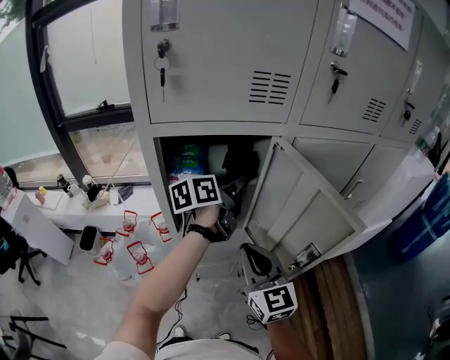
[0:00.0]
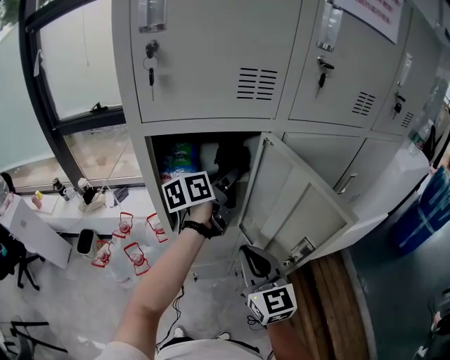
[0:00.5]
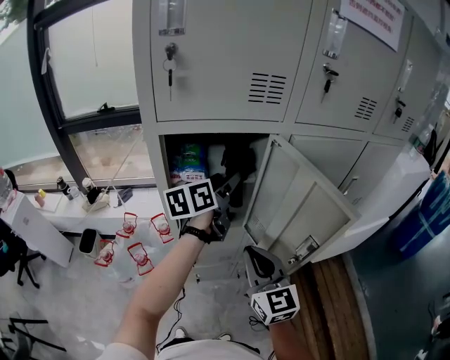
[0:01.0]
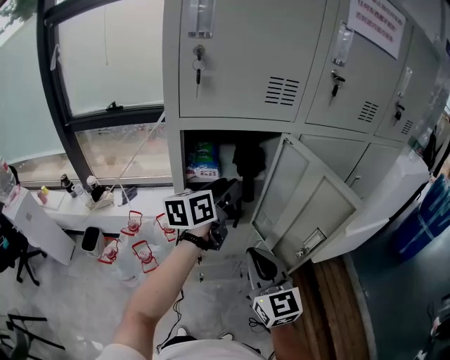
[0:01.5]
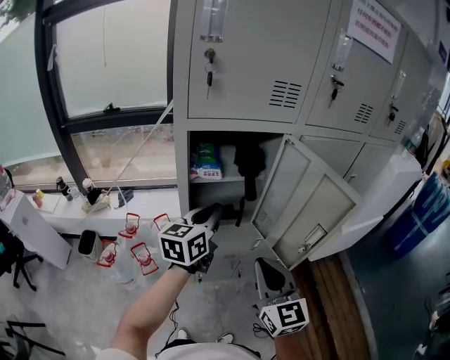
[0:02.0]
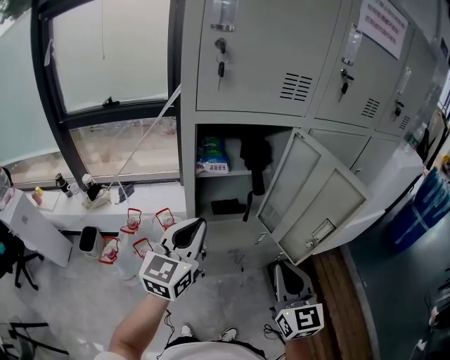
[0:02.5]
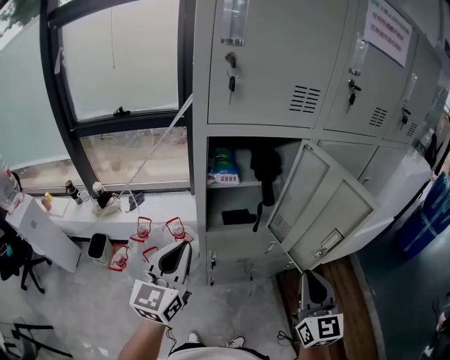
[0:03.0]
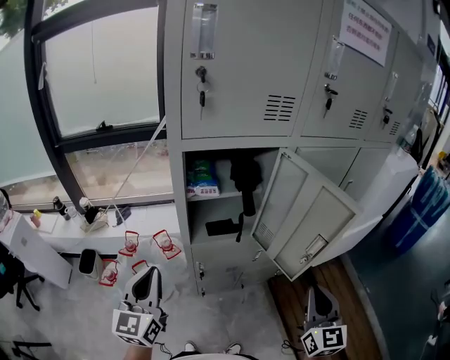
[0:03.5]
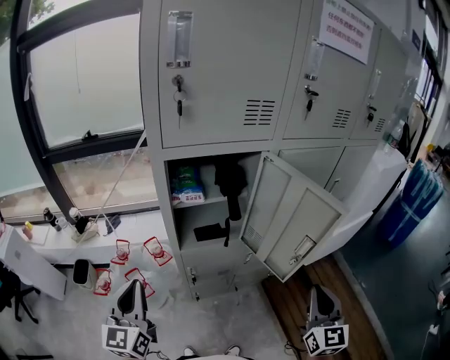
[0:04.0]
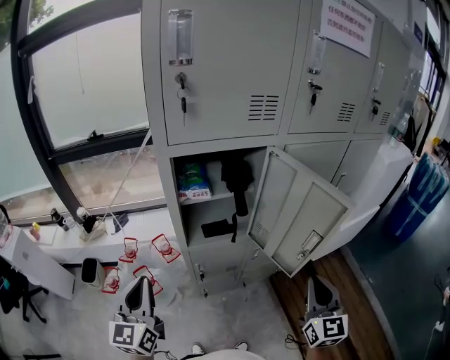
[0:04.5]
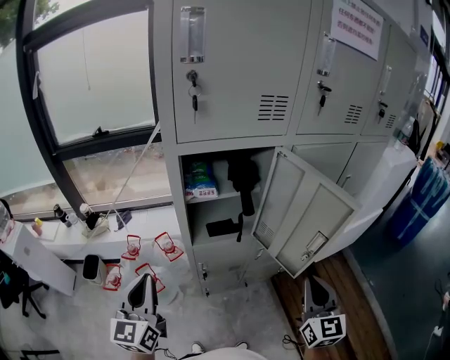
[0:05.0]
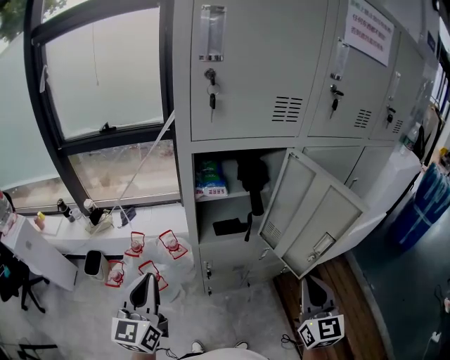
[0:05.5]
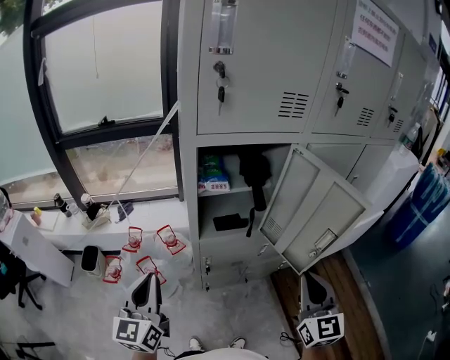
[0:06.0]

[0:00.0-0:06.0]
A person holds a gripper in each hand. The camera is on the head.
0:00.0 to 0:02.0: The left gripper shifts approximately 15 cm backward and to the left, changes its angle by about 30 degrees, and closes its fingers. Meanwhile the right gripper travels backward by about 10 cm.
0:02.0 to 0:04.0: The left gripper heads backward and to the left, covering roughly 25 cm, and swivels about 30 degrees, while the right gripper is displaced to the right by about 15 cm, and turns by about 30 degrees.
0:04.0 to 0:06.0: The right gripper moves to the left, about 10 cm.

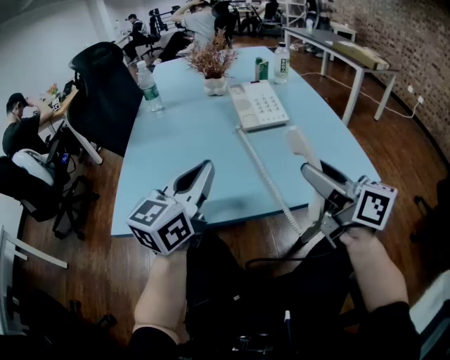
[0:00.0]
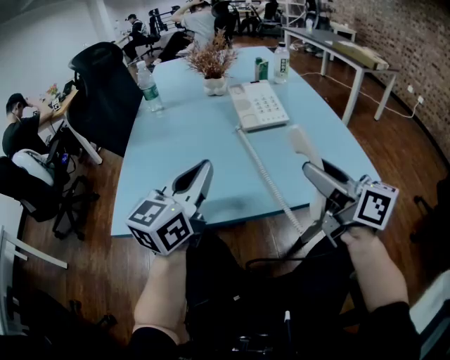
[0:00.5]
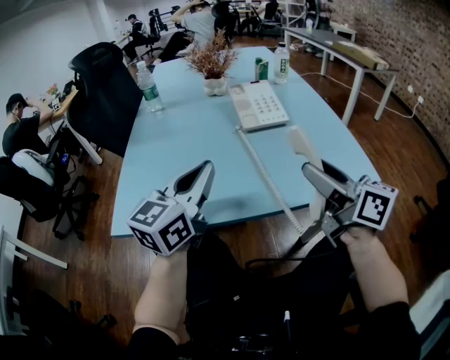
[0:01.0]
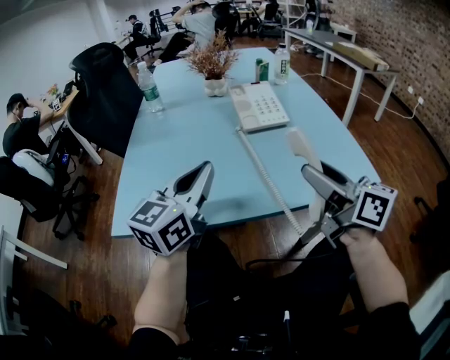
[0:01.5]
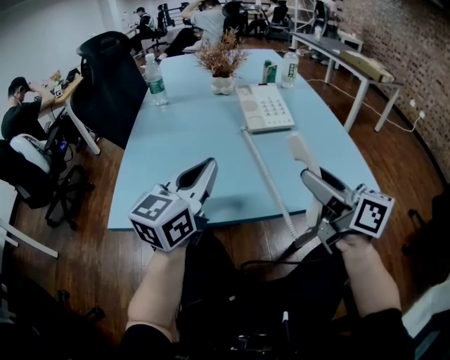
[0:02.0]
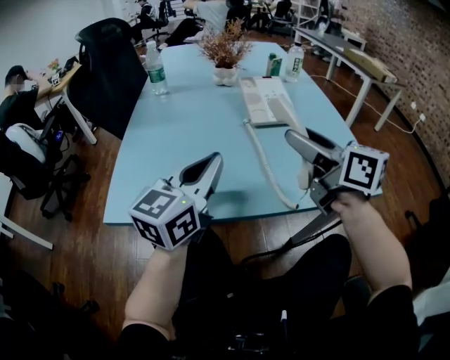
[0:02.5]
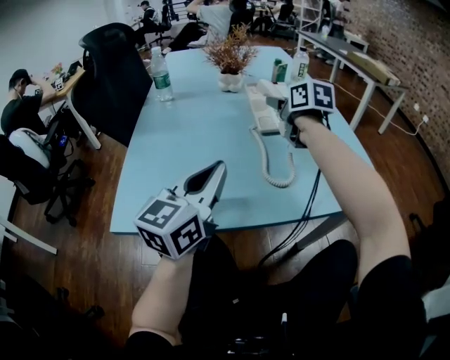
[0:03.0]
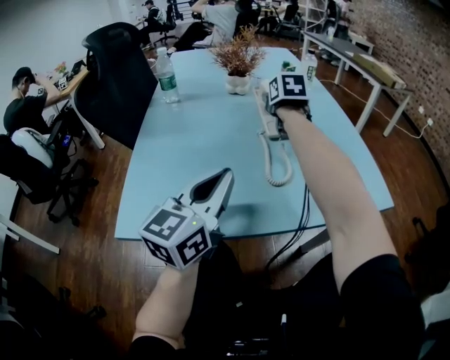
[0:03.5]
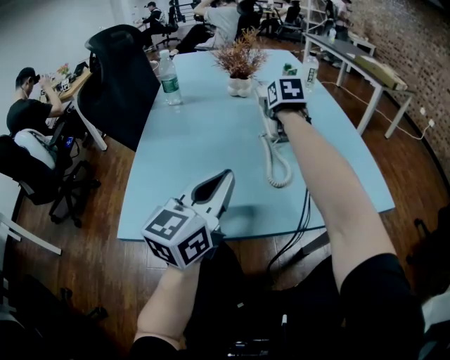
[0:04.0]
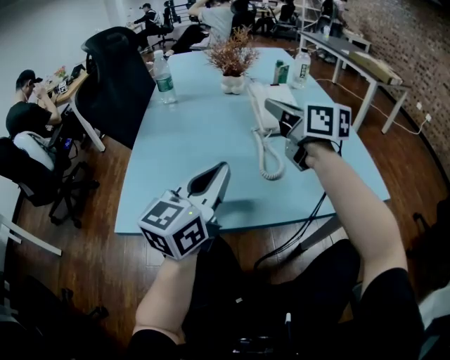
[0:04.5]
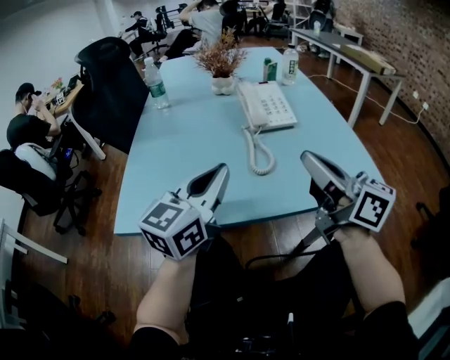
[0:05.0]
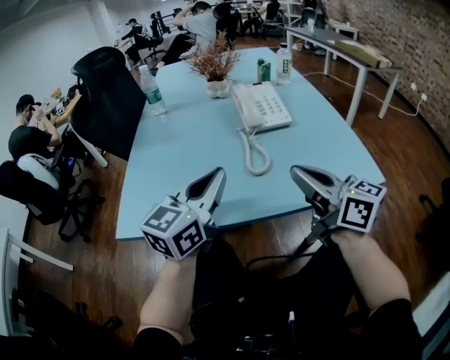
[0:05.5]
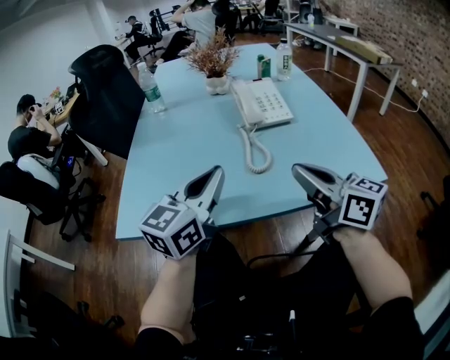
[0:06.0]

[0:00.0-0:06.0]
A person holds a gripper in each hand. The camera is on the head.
0:00.0 to 0:02.0: The two grippers keep their place.
0:02.0 to 0:04.0: The right gripper goes some 35 cm forward, and tilts its fingers about 30 degrees downward.
0:04.0 to 0:06.0: The right gripper is displaced backward by approximately 35 cm, angles its fingers upward, by about 30 degrees, and closes its fingers.

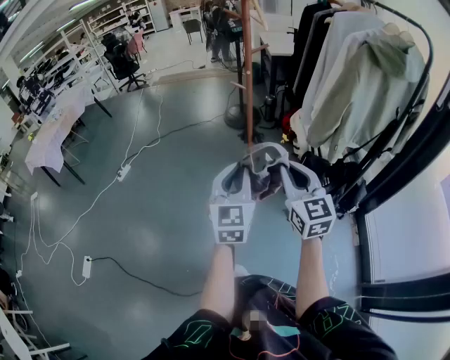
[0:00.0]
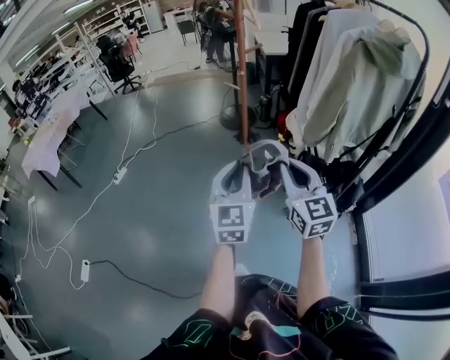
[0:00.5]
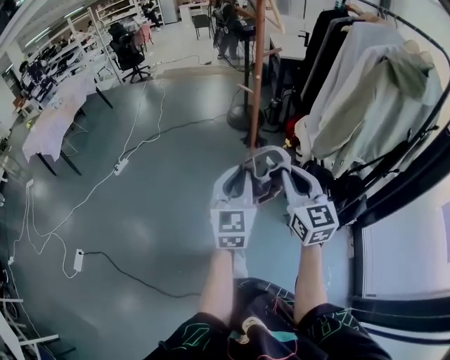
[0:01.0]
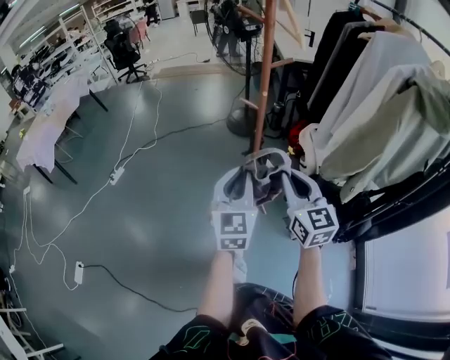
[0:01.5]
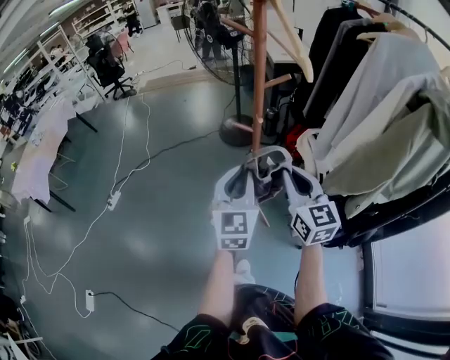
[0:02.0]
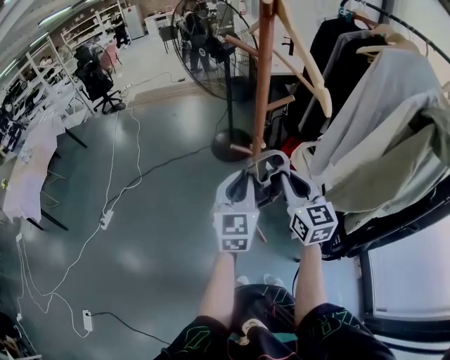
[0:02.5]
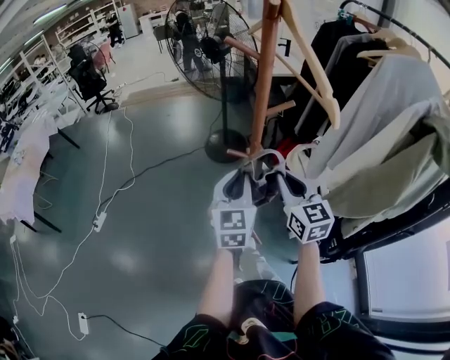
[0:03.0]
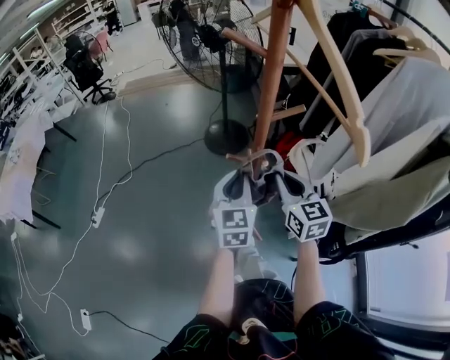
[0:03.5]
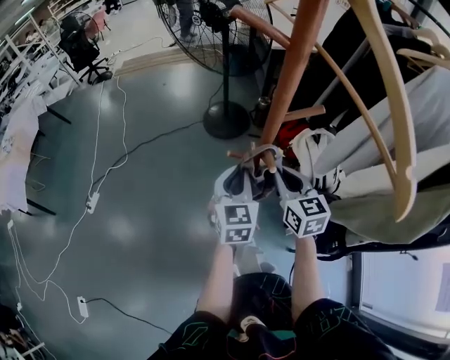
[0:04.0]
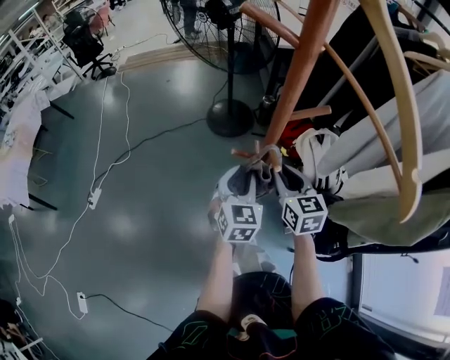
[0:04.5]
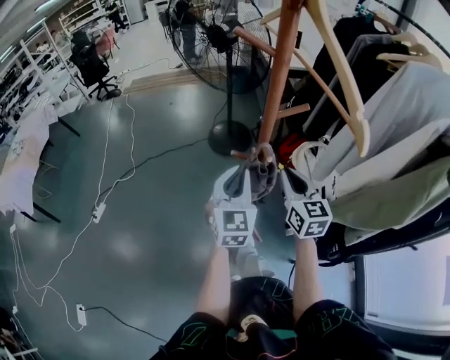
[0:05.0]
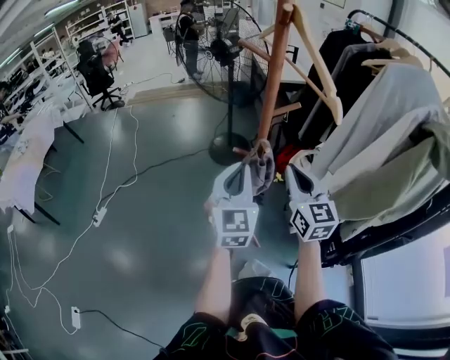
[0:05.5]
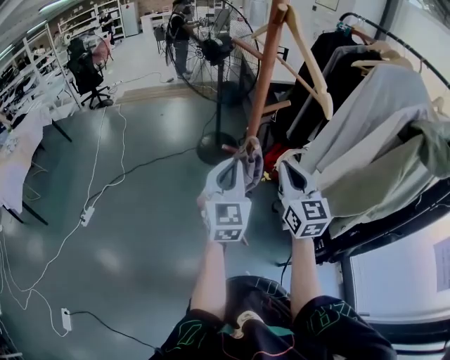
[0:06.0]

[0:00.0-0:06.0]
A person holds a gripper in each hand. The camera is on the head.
0:00.0 to 0:02.0: Both grippers move forward, approximately 30 cm.
0:02.0 to 0:04.0: The two grippers go some 20 cm forward and downward.
0:04.0 to 0:06.0: Both grippers move upward and backward, roughly 15 cm. The right gripper changes its angle by some 20 degrees; the left gripper changes its angle by some 20 degrees.

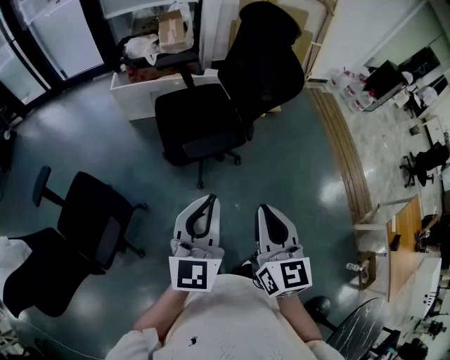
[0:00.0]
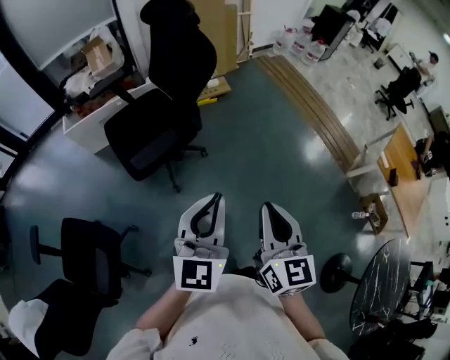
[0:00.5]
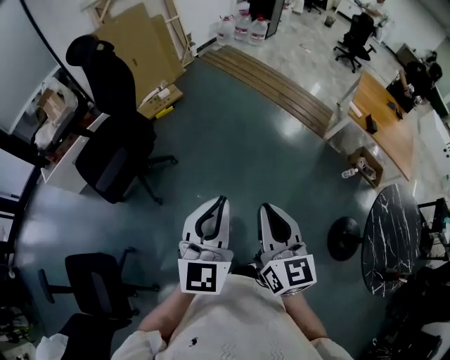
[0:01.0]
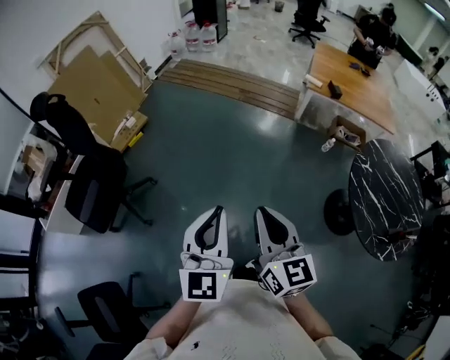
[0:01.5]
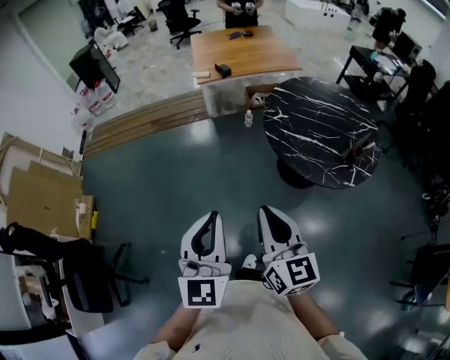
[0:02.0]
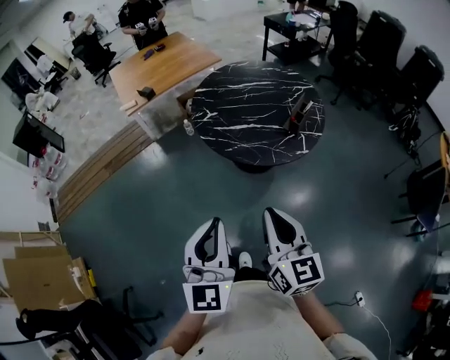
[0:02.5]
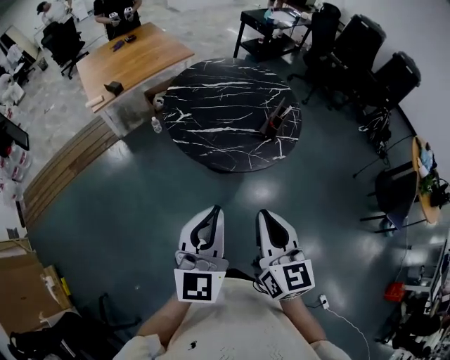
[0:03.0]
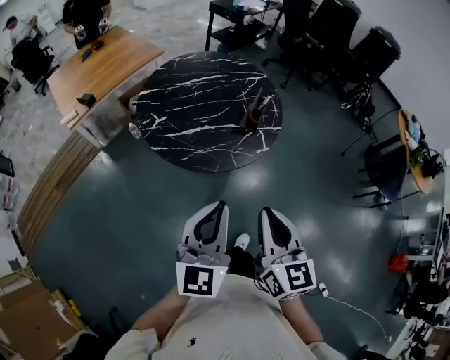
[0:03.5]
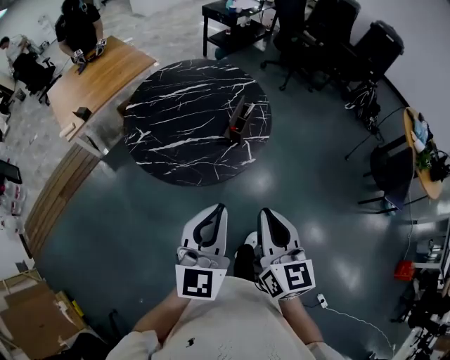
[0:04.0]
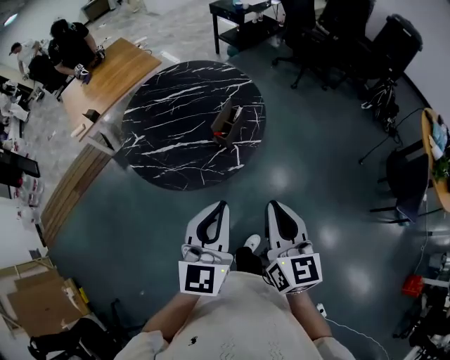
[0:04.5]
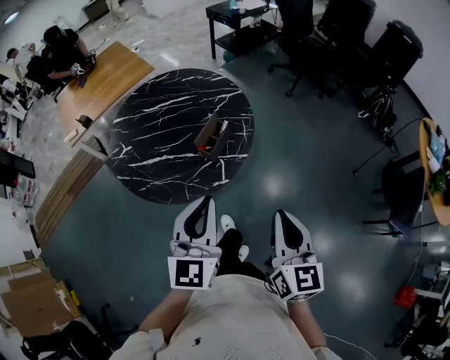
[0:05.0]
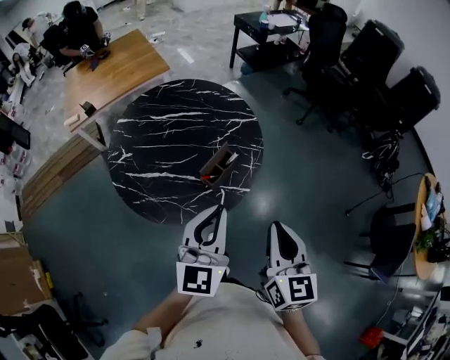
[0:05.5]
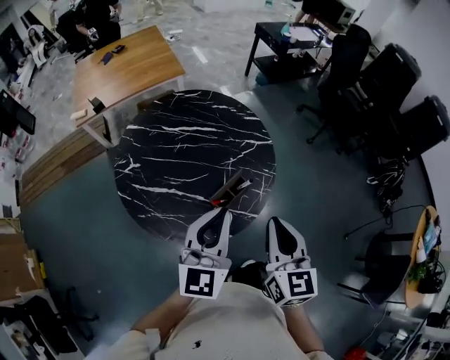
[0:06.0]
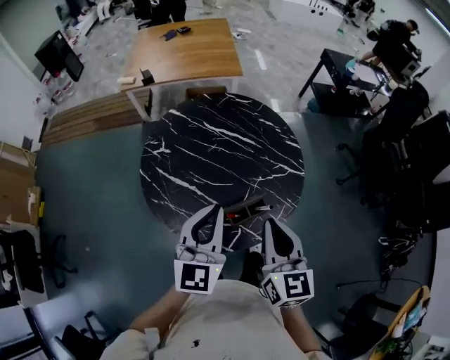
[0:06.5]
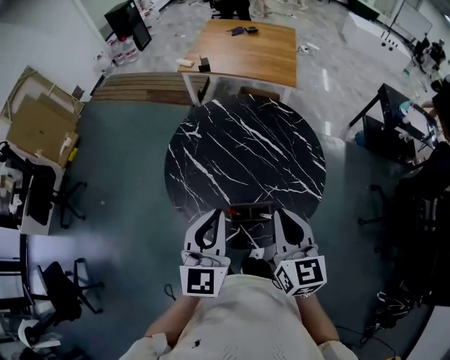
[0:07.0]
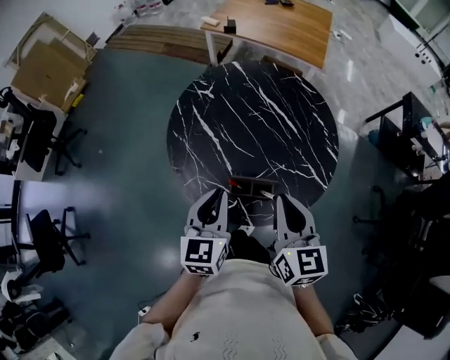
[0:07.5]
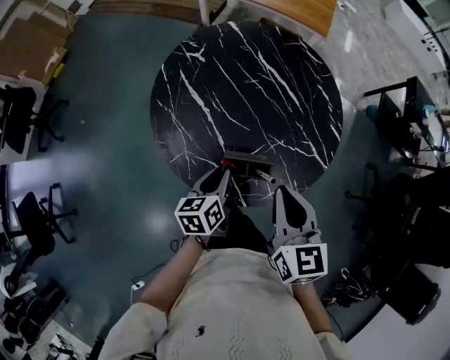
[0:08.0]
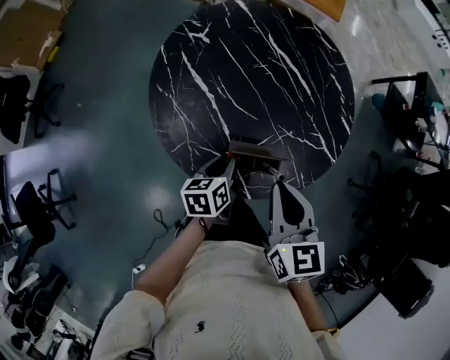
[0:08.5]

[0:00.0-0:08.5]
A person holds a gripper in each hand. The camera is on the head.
0:00.0 to 0:02.0: The two grippers travel together, approximately 80 cm. The right gripper turns by approximately 80 degrees. Meanwhile the left gripper changes its angle by roughly 80 degrees.
0:02.0 to 0:04.0: The left gripper moves about 40 cm, and swivels some 50 degrees. The right gripper changes place by about 35 cm, and turns by about 40 degrees.
0:04.0 to 0:06.5: The left gripper shifts by roughly 35 cm, and turns by roughly 40 degrees. The right gripper shifts by roughly 40 cm, and rotates about 40 degrees.
0:06.5 to 0:08.5: The right gripper shifts roughly 10 cm downward, and swivels about 40 degrees. Meanwhile the left gripper shifts roughly 30 cm downward, and tips its fingers downward by some 40 degrees.
